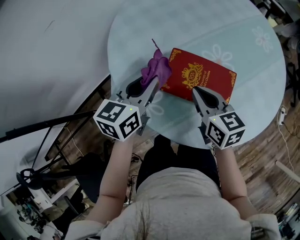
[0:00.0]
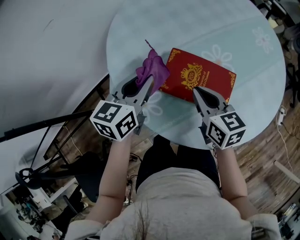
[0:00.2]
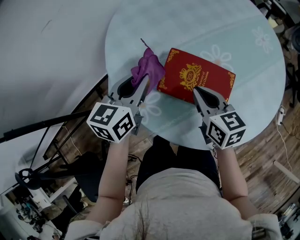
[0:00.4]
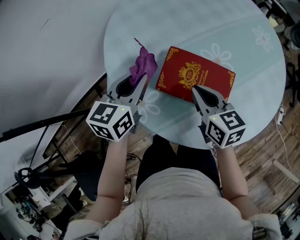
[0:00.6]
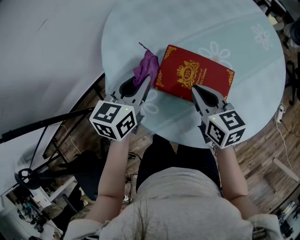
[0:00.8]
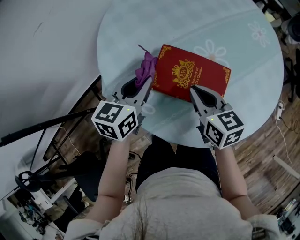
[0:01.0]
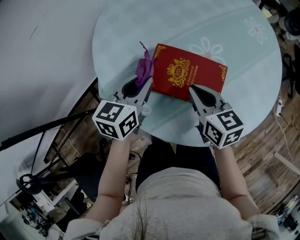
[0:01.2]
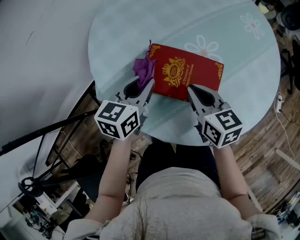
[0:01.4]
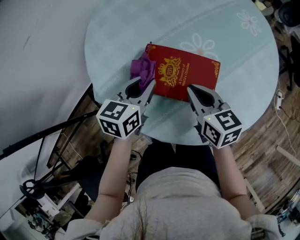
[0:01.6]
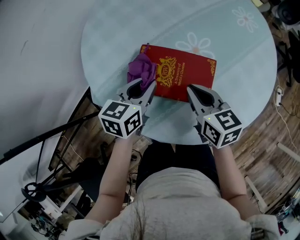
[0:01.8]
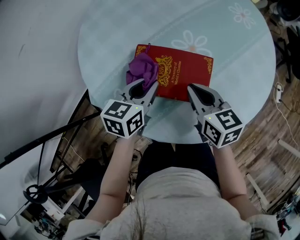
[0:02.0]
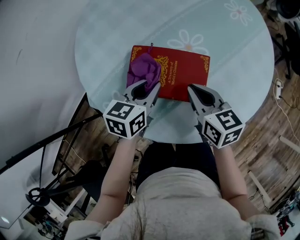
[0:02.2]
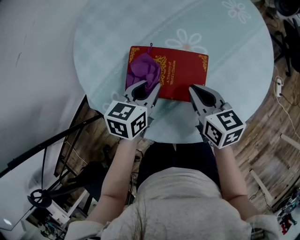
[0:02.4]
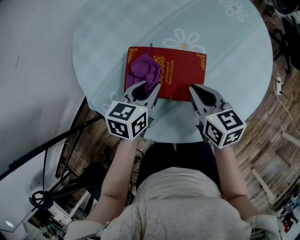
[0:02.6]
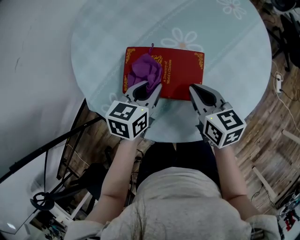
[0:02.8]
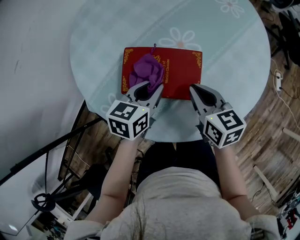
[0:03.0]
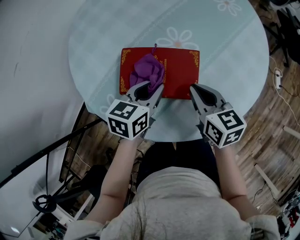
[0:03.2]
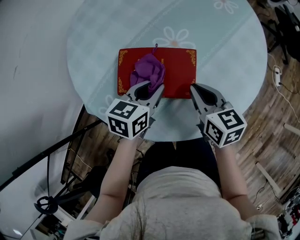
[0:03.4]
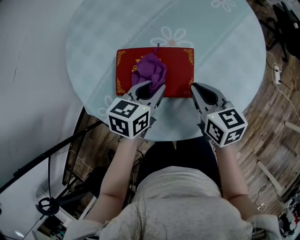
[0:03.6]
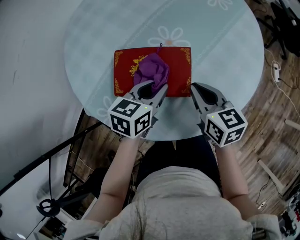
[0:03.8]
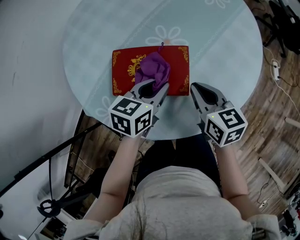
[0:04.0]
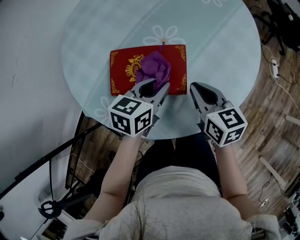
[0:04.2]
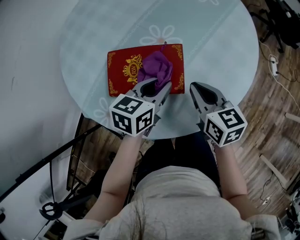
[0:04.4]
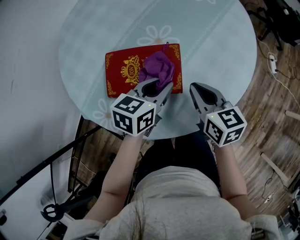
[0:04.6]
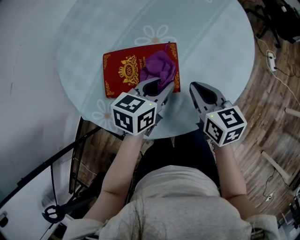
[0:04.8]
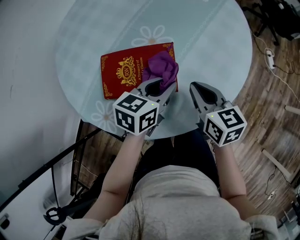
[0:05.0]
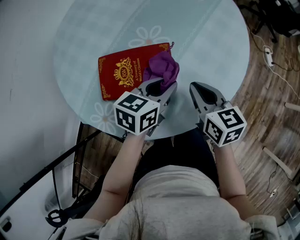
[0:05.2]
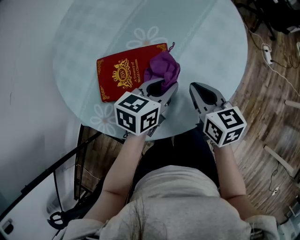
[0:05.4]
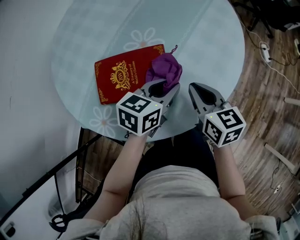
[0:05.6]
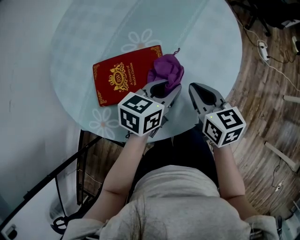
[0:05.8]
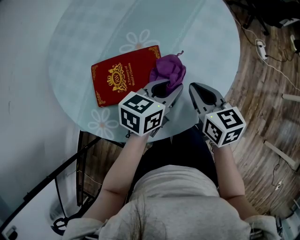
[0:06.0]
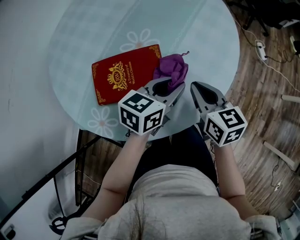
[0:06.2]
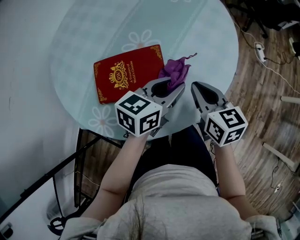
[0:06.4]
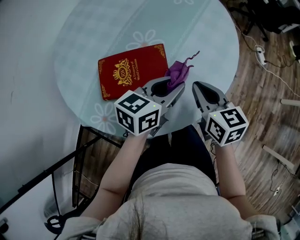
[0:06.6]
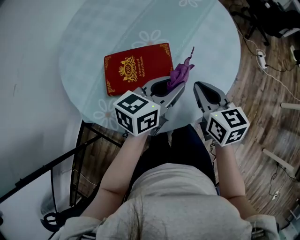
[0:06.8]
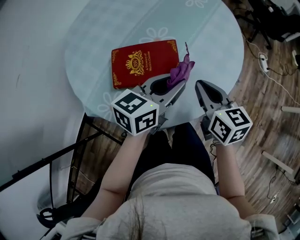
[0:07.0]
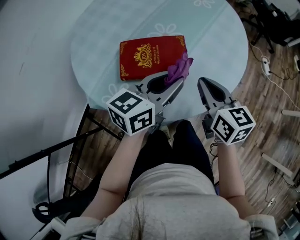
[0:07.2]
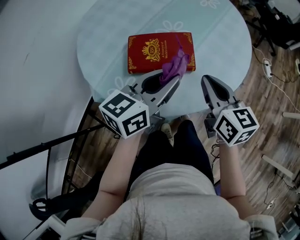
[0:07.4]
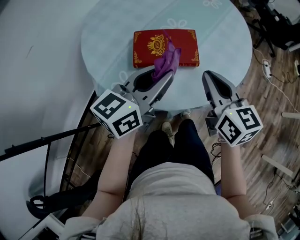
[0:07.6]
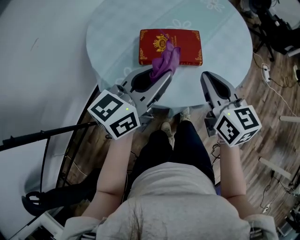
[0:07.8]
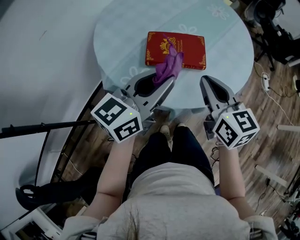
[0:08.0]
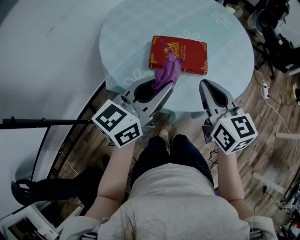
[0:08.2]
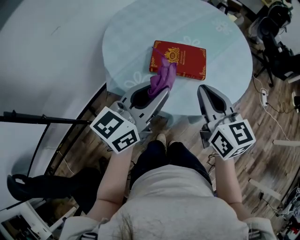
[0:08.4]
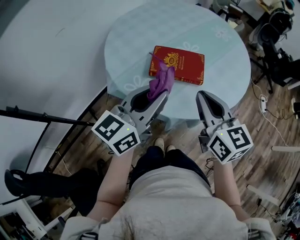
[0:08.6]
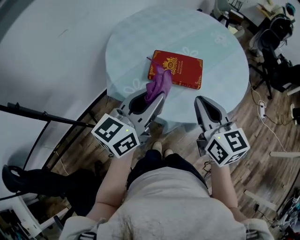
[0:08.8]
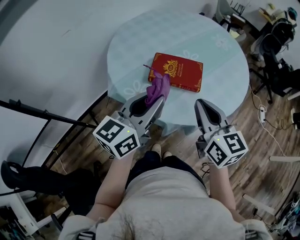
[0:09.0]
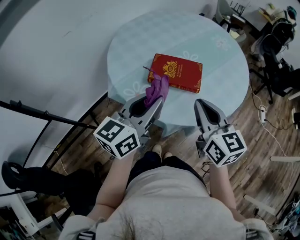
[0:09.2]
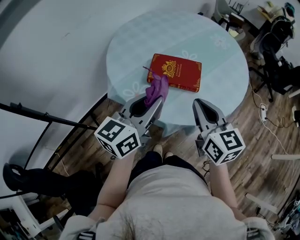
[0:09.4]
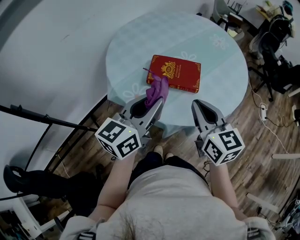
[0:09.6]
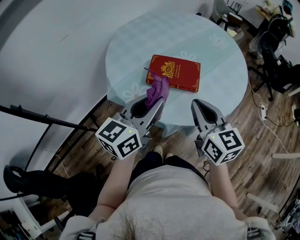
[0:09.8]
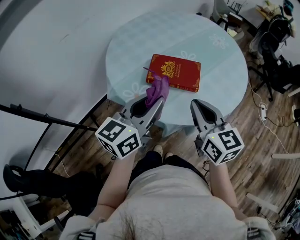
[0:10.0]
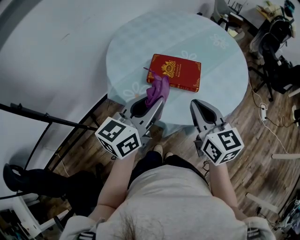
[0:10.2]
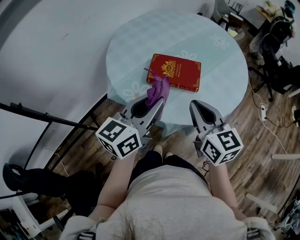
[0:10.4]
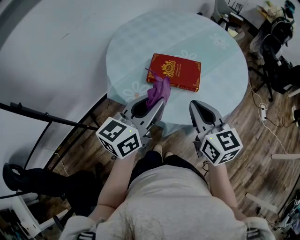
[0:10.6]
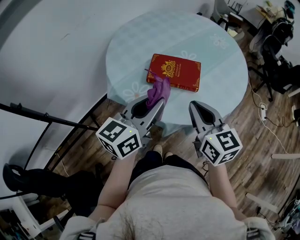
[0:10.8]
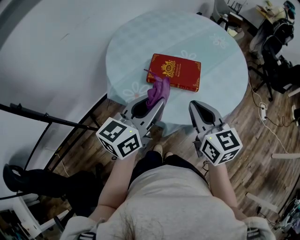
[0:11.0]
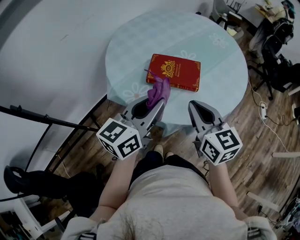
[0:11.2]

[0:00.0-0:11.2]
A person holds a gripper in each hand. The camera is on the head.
0:00.0 to 0:01.6: The right gripper is displaced to the right by approximately 5 cm. The left gripper heads to the right and downward, covering approximately 10 cm.
0:01.6 to 0:03.2: Both grippers travel together to the right, about 10 cm.
0:03.2 to 0:04.8: The left gripper moves to the right, about 10 cm. Meanwhile the right gripper is displaced to the right by about 5 cm.
0:04.8 to 0:06.4: The right gripper ends up roughly 5 cm from where it was; the left gripper shifts about 5 cm to the right.
0:06.4 to 0:08.0: The right gripper goes some 25 cm backward, upward and to the left. Meanwhile the left gripper moves backward, to the left and upward, about 30 cm, and swivels some 30 degrees.
0:08.0 to 0:09.6: The grippers move only a little.
0:09.6 to 0:11.2: Both grippers stay about where they are.

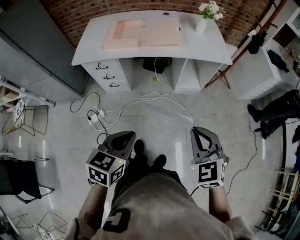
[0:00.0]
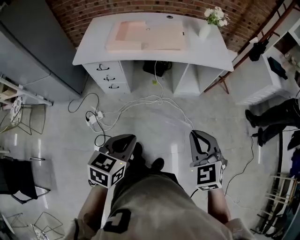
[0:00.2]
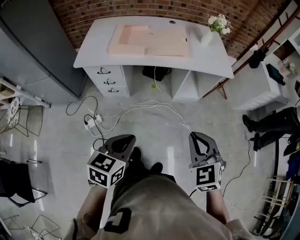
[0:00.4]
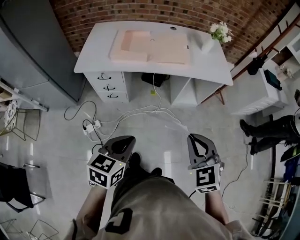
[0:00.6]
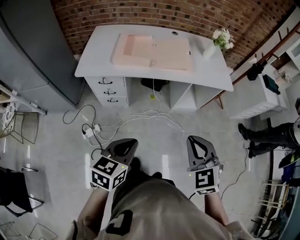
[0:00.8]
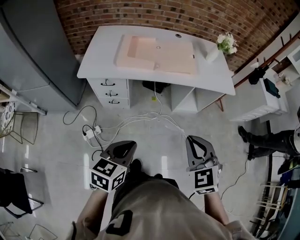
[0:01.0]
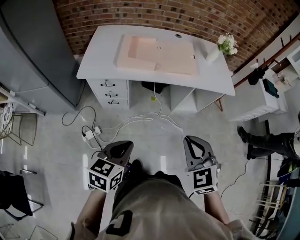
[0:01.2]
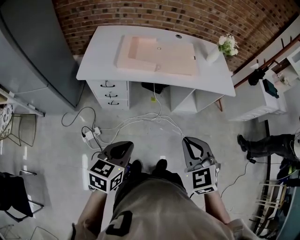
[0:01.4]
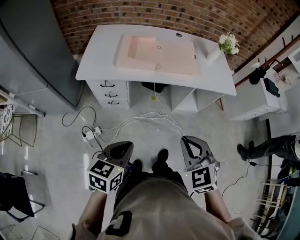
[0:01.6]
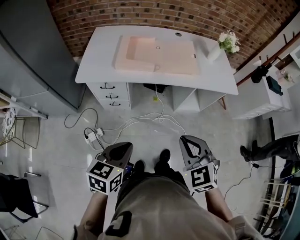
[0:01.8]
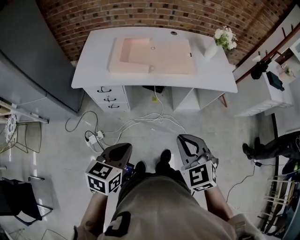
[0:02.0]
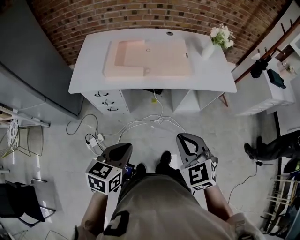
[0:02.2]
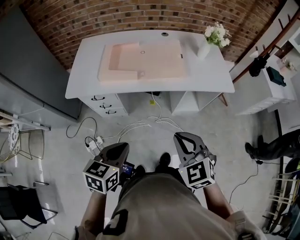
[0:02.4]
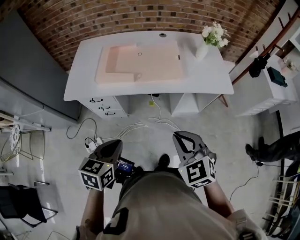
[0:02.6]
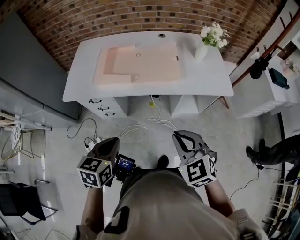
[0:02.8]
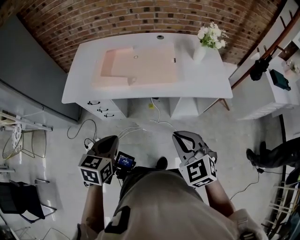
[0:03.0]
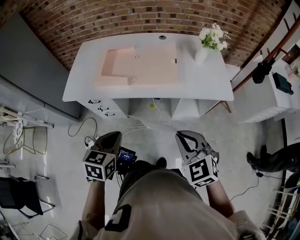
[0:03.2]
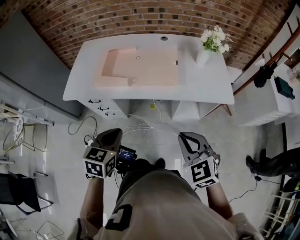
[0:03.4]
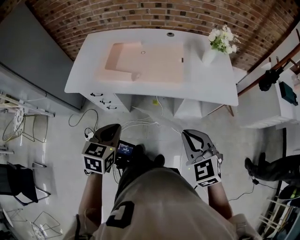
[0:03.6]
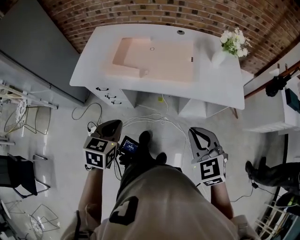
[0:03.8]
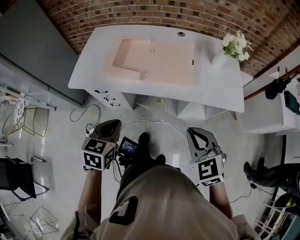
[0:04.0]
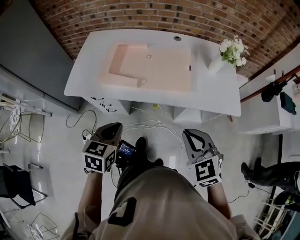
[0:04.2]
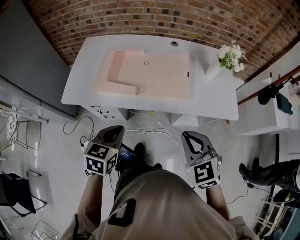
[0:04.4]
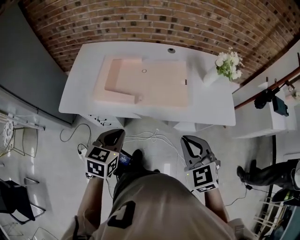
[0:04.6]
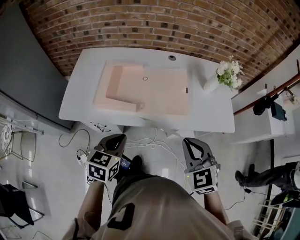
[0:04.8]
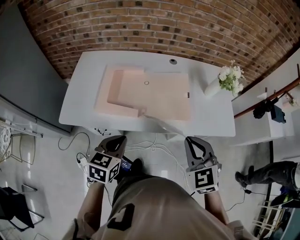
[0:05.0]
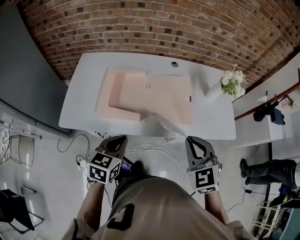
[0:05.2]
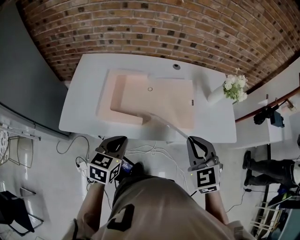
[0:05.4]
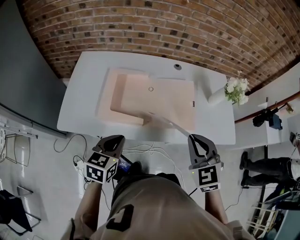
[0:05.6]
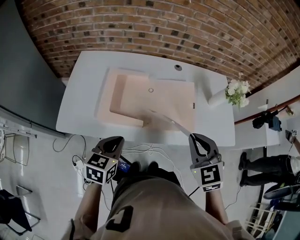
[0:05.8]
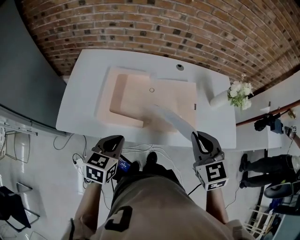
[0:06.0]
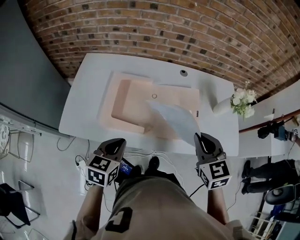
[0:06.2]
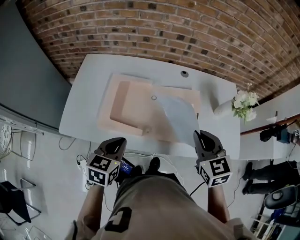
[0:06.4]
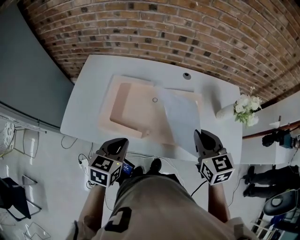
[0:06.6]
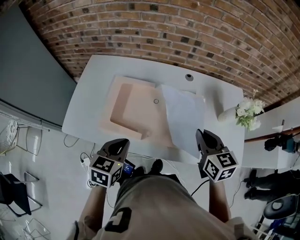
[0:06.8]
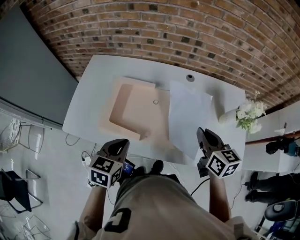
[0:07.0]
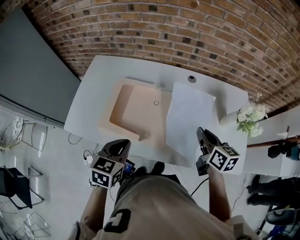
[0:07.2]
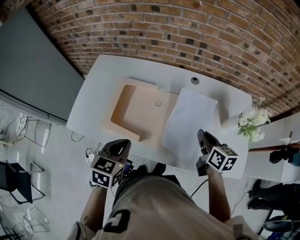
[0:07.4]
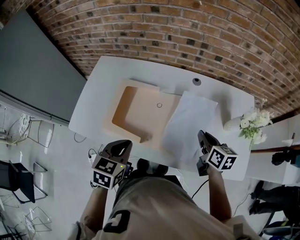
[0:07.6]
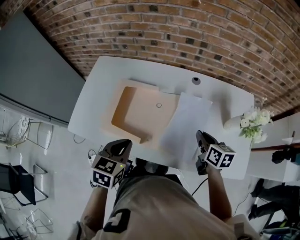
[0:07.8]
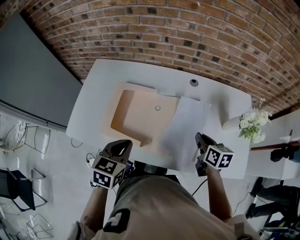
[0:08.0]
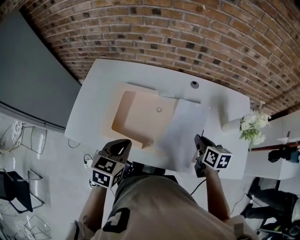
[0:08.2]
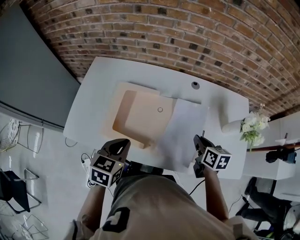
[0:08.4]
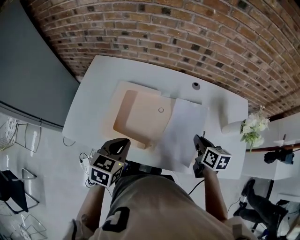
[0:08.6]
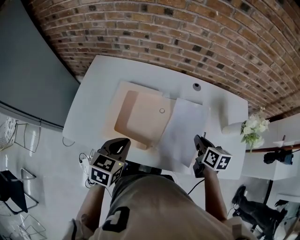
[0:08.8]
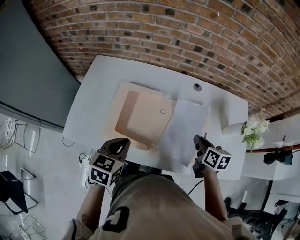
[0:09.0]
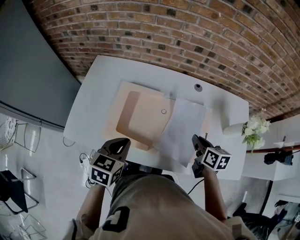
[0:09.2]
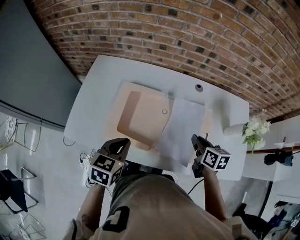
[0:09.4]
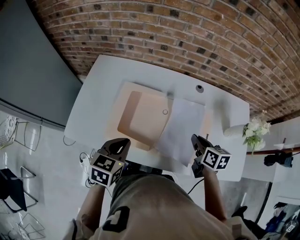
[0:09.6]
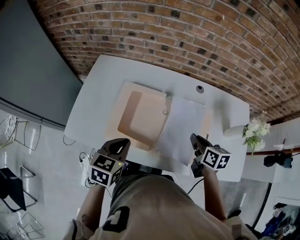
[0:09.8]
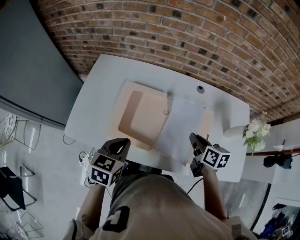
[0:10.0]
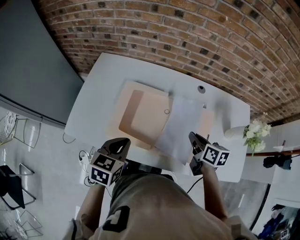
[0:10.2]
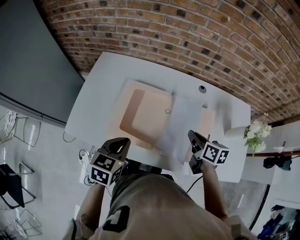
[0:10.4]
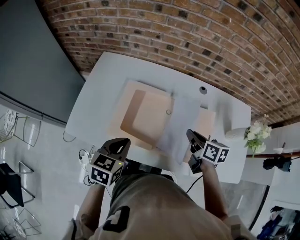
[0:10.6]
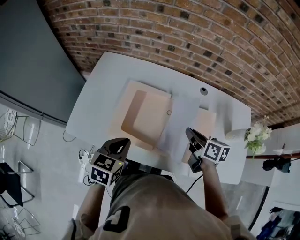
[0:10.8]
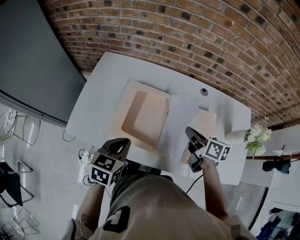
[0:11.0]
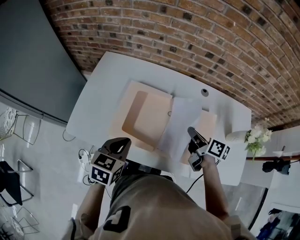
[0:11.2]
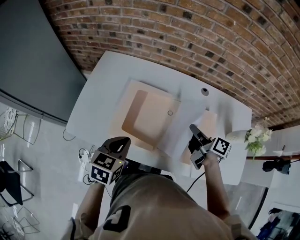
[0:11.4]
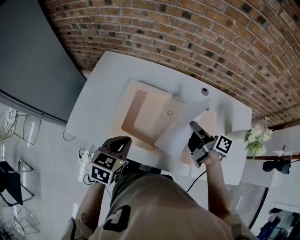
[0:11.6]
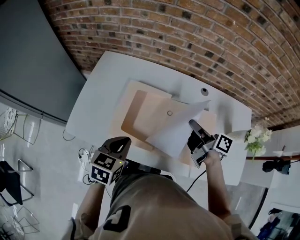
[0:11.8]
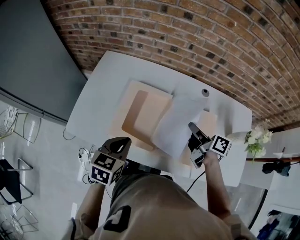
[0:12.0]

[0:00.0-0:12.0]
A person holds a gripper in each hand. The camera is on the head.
0:00.0 to 0:01.6: The grippers both shift to the left and forward by roughly 20 cm.
0:01.6 to 0:03.0: The right gripper heads to the right and forward, covering some 20 cm; the left gripper heads forward and to the right, covering roughly 15 cm.
0:03.0 to 0:04.4: The two grippers go roughly 10 cm forward.
0:04.4 to 0:06.0: The left gripper heads forward and to the left, covering approximately 15 cm, while the right gripper heads forward, covering roughly 15 cm.
0:06.0 to 0:07.6: The left gripper heads to the right and forward, covering roughly 10 cm; the right gripper goes about 25 cm forward, downward and to the right, and rotates around the line of its fingers by approximately 50 degrees, clockwise from behind.
0:07.6 to 0:09.0: Both grippers move to the left, about 5 cm.
0:09.0 to 0:10.4: The right gripper travels to the left by about 5 cm.
0:10.4 to 0:12.0: The right gripper shifts by approximately 5 cm, and swivels roughly 30 degrees.

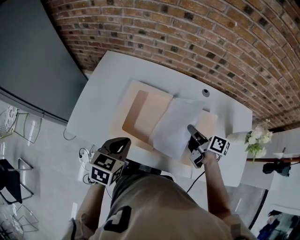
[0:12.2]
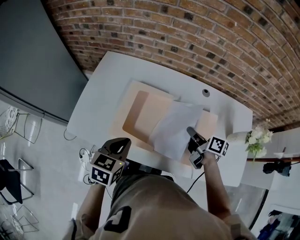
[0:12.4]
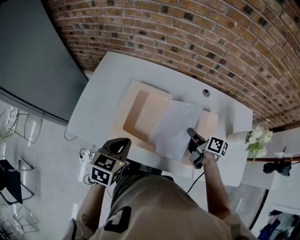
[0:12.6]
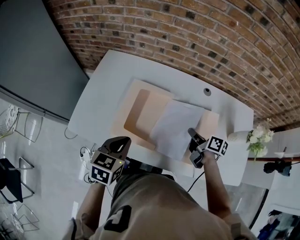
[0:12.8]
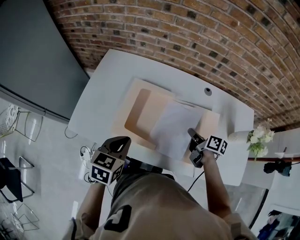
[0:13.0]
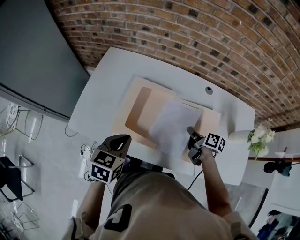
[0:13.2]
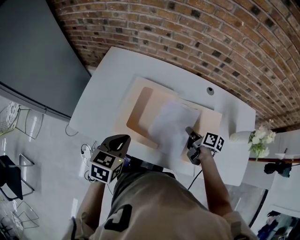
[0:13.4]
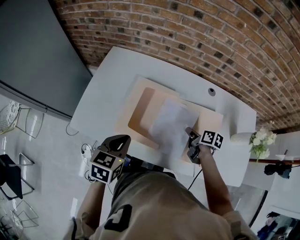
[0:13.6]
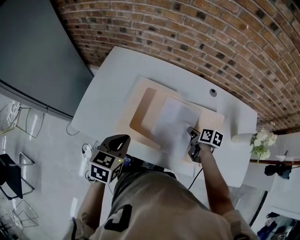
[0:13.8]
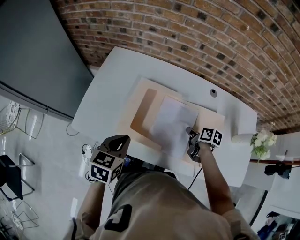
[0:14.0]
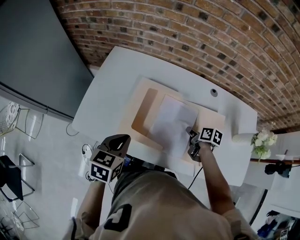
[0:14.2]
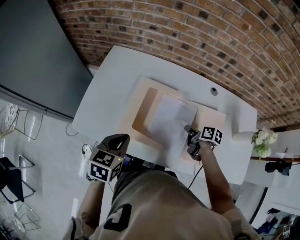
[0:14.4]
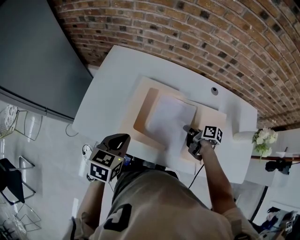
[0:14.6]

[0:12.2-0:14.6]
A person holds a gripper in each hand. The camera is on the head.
0:12.2 to 0:13.4: The right gripper goes some 10 cm downward.
0:13.4 to 0:14.6: The right gripper shifts by approximately 5 cm.
